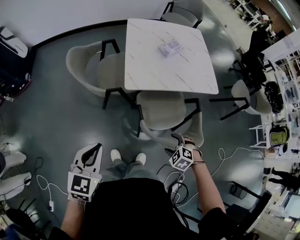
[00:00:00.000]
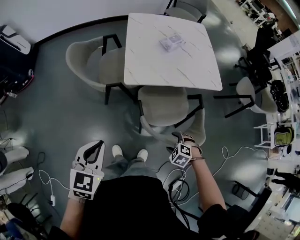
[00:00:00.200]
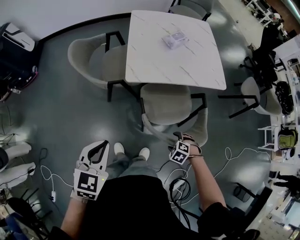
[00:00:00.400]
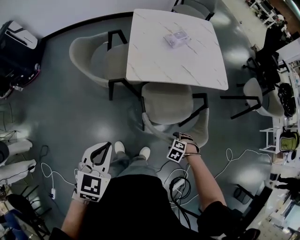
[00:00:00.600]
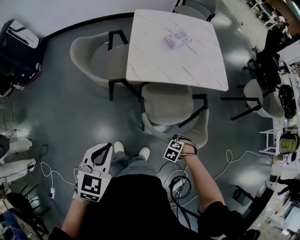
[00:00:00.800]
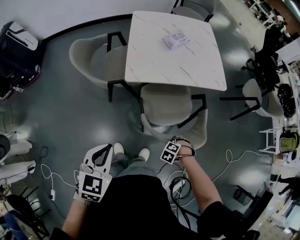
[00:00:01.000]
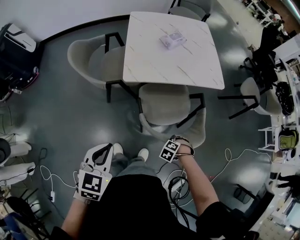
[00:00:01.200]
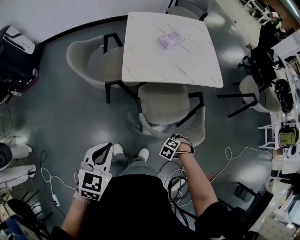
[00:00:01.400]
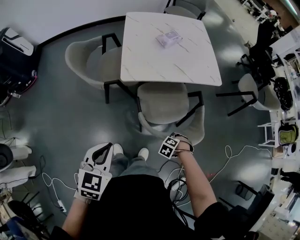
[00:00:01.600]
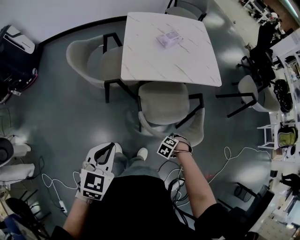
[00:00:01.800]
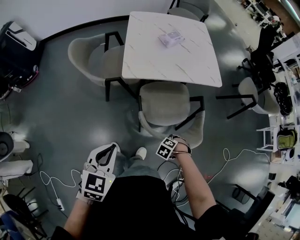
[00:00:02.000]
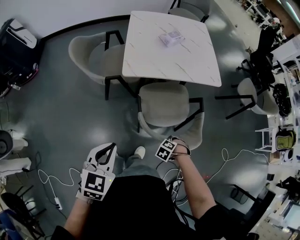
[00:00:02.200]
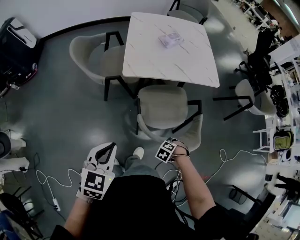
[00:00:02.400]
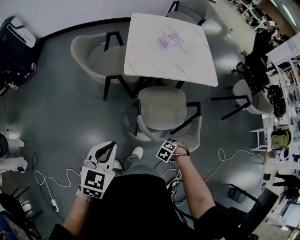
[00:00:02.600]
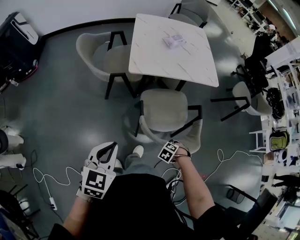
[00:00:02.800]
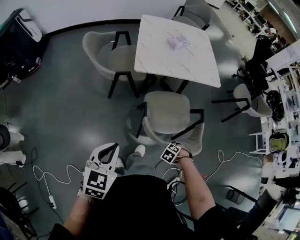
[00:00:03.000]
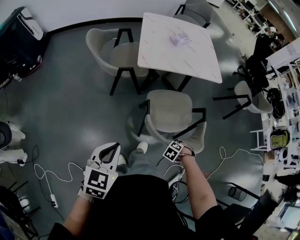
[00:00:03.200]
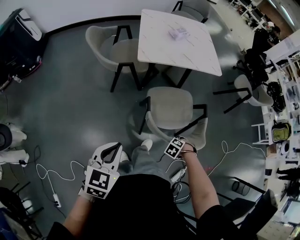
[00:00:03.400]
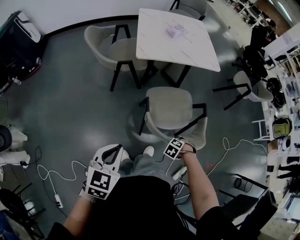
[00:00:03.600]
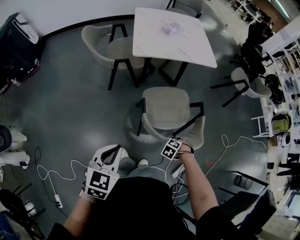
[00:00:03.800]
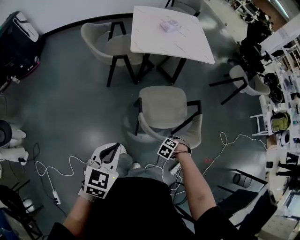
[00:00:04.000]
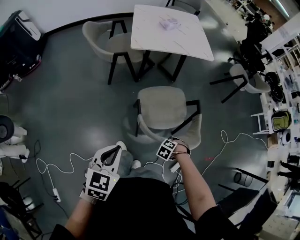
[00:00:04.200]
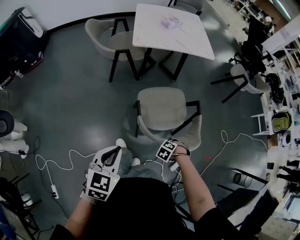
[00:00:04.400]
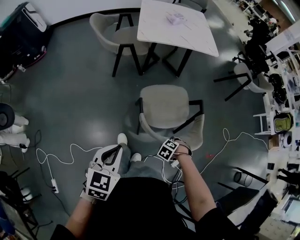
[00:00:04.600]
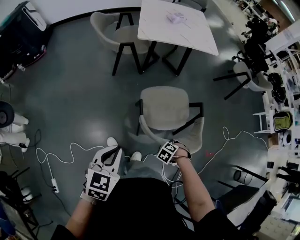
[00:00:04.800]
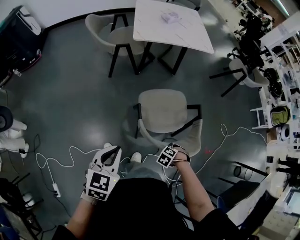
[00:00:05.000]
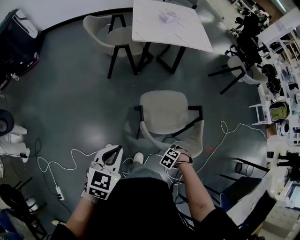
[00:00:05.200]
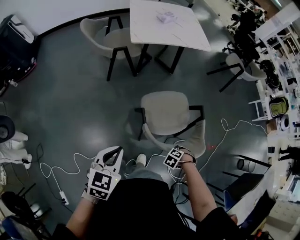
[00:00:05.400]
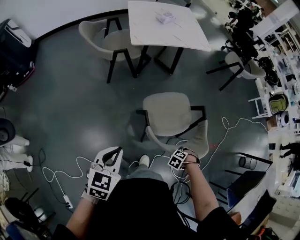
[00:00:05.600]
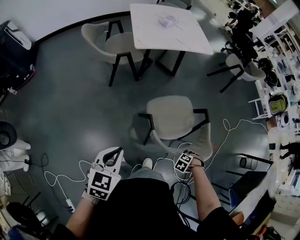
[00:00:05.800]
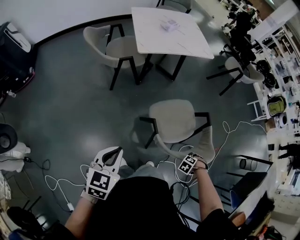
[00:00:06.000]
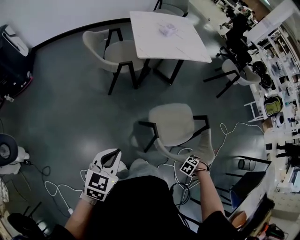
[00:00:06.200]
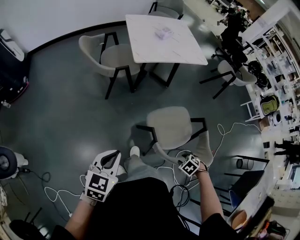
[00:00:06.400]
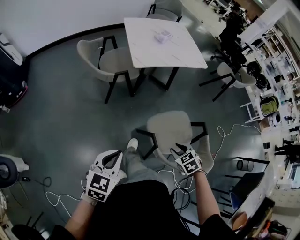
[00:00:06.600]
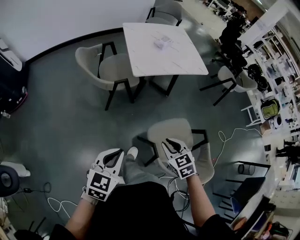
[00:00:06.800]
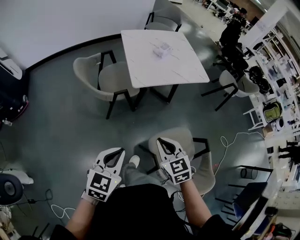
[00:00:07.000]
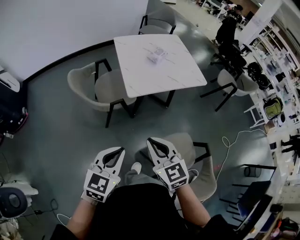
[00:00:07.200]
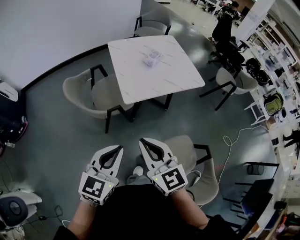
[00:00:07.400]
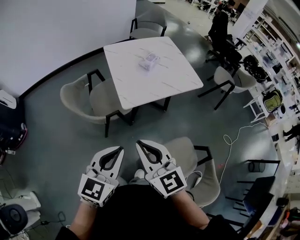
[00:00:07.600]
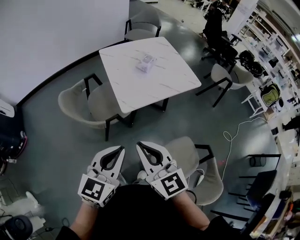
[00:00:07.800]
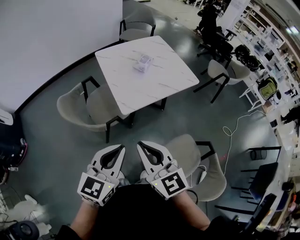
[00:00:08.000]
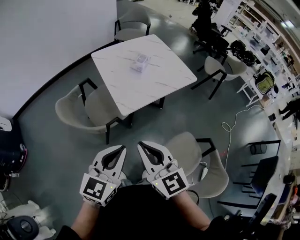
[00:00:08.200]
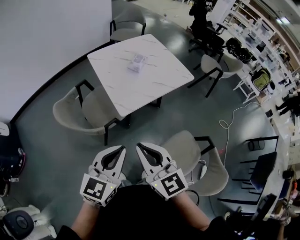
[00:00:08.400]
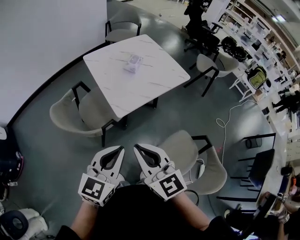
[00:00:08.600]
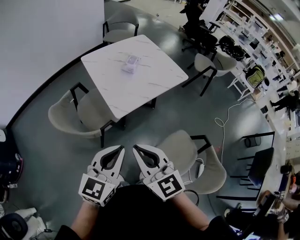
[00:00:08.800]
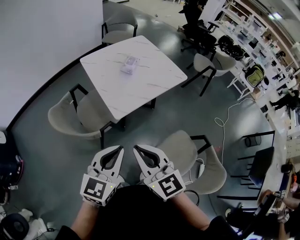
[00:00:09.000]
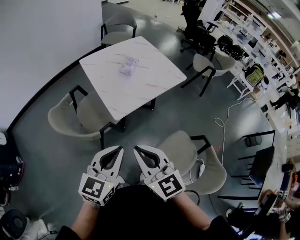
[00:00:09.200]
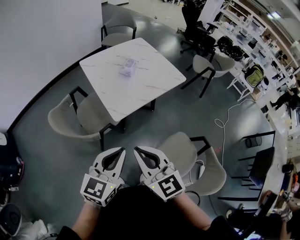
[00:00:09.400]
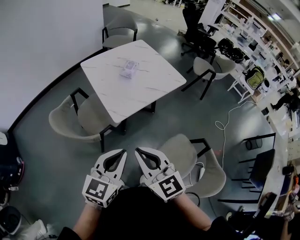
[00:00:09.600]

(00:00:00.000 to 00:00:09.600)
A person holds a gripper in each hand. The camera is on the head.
00:00:00.000 - 00:00:01.600: The right gripper goes approximately 15 cm downward, swivels approximately 20 degrees, and closes up; the left gripper ends up about 10 cm from where it was.
00:00:01.600 - 00:00:03.200: The left gripper shifts by roughly 15 cm. The right gripper shifts by some 15 cm.
00:00:03.200 - 00:00:04.800: The left gripper changes place by about 25 cm. Meanwhile the right gripper shifts by roughly 25 cm.
00:00:04.800 - 00:00:06.400: The left gripper moves roughly 20 cm. The right gripper moves upward, about 10 cm, and turns by roughly 20 degrees.
00:00:06.400 - 00:00:08.000: The left gripper moves about 40 cm, and rotates roughly 20 degrees, while the right gripper shifts by about 60 cm, points its fingers about 80 degrees further upward, and closes up.
00:00:08.000 - 00:00:09.600: The grippers stay close to where they were, moving slightly.

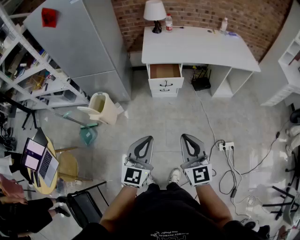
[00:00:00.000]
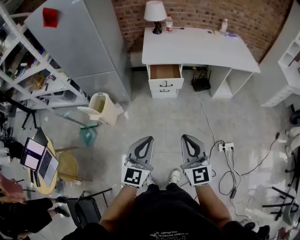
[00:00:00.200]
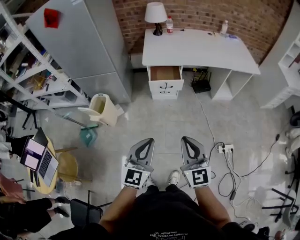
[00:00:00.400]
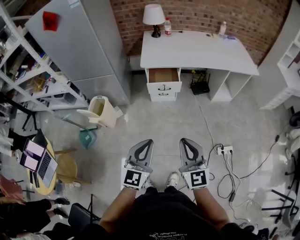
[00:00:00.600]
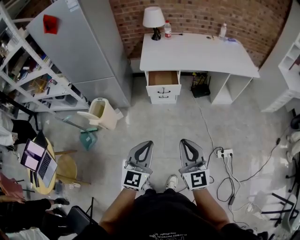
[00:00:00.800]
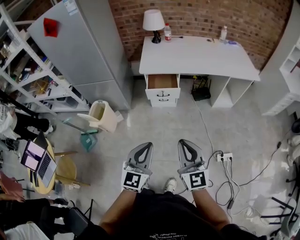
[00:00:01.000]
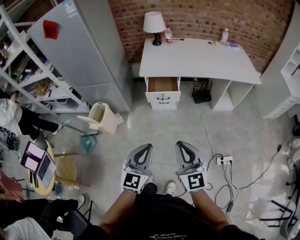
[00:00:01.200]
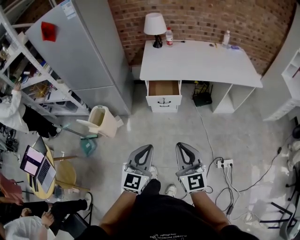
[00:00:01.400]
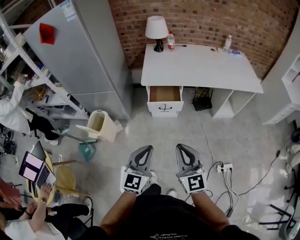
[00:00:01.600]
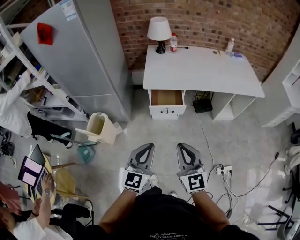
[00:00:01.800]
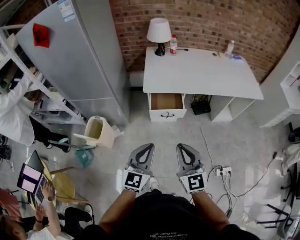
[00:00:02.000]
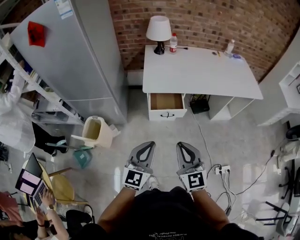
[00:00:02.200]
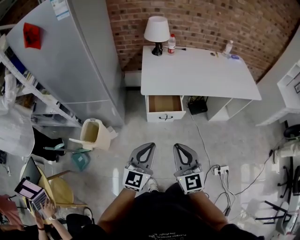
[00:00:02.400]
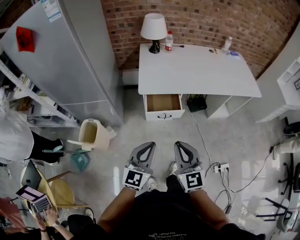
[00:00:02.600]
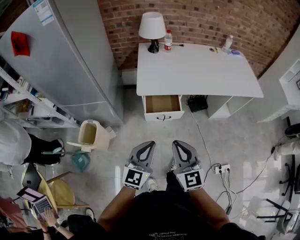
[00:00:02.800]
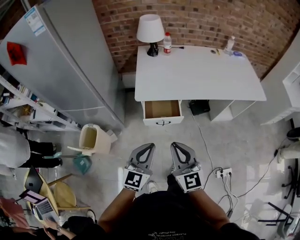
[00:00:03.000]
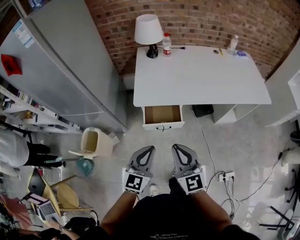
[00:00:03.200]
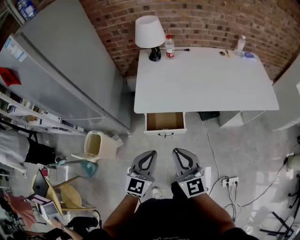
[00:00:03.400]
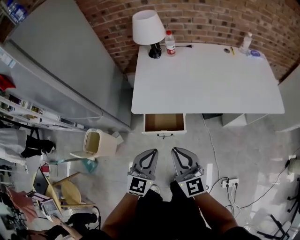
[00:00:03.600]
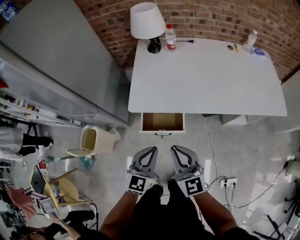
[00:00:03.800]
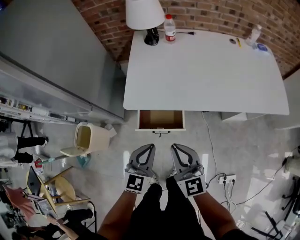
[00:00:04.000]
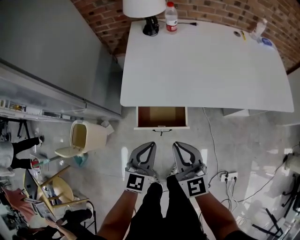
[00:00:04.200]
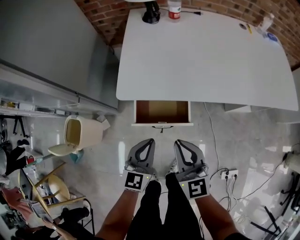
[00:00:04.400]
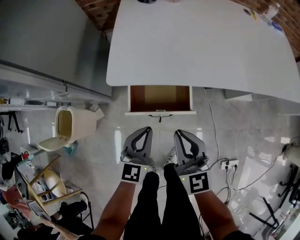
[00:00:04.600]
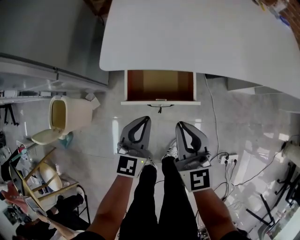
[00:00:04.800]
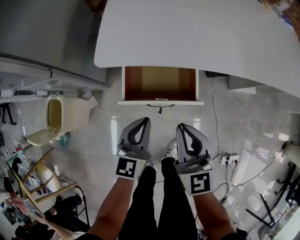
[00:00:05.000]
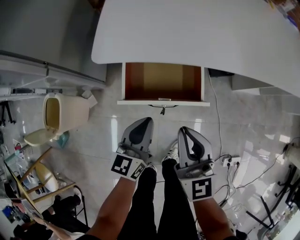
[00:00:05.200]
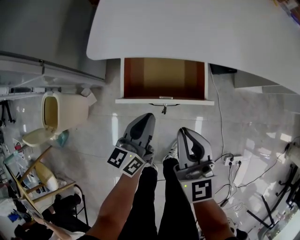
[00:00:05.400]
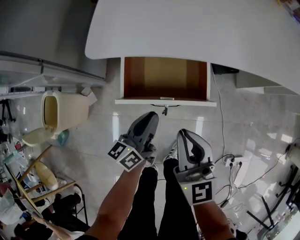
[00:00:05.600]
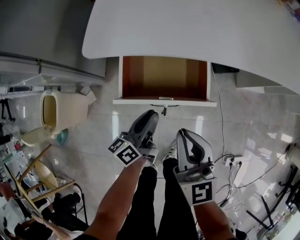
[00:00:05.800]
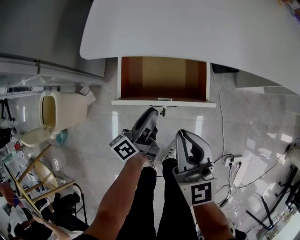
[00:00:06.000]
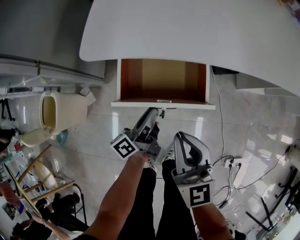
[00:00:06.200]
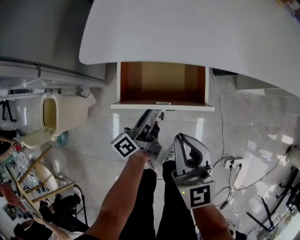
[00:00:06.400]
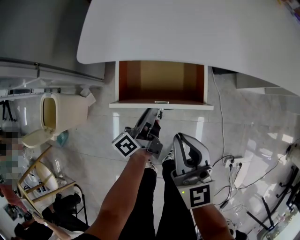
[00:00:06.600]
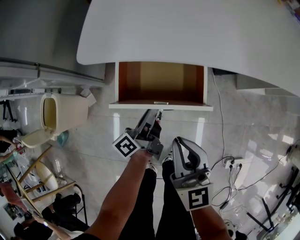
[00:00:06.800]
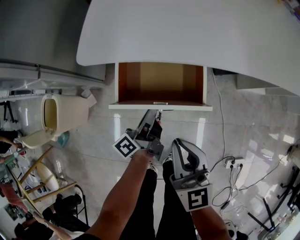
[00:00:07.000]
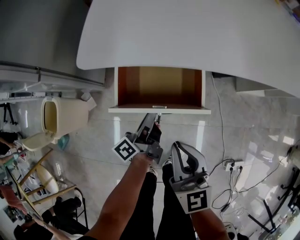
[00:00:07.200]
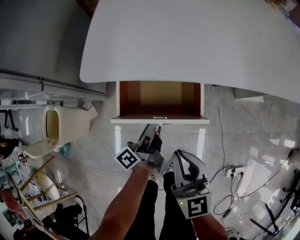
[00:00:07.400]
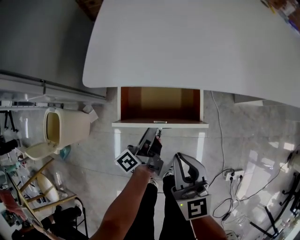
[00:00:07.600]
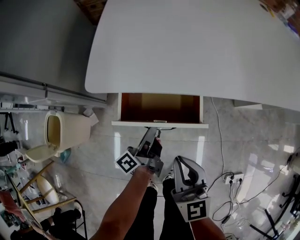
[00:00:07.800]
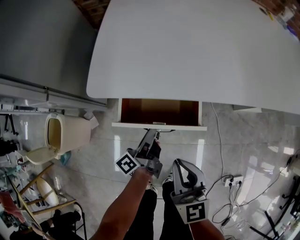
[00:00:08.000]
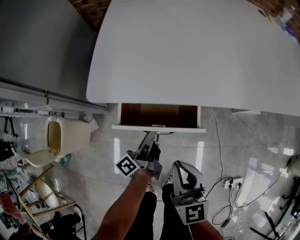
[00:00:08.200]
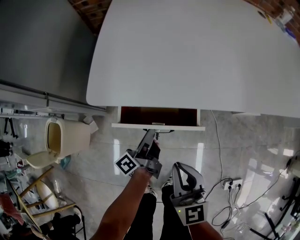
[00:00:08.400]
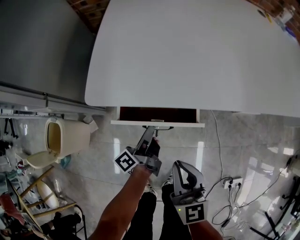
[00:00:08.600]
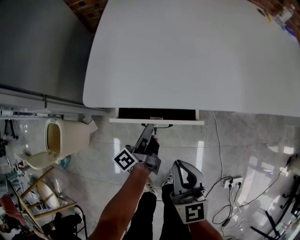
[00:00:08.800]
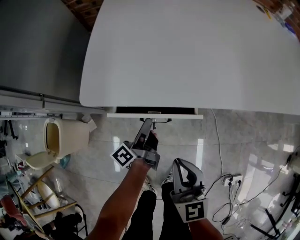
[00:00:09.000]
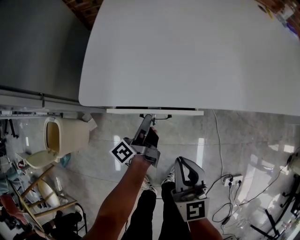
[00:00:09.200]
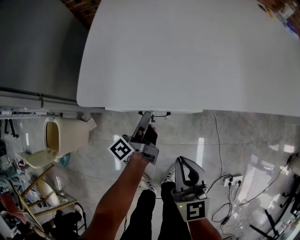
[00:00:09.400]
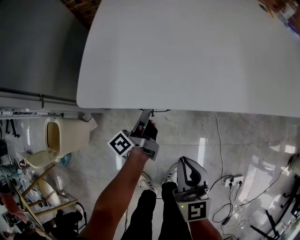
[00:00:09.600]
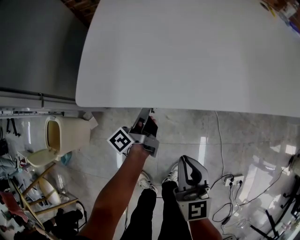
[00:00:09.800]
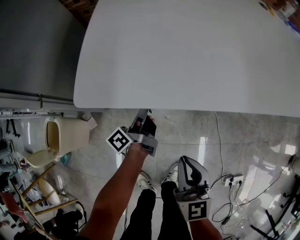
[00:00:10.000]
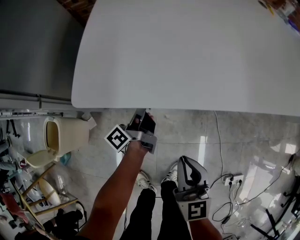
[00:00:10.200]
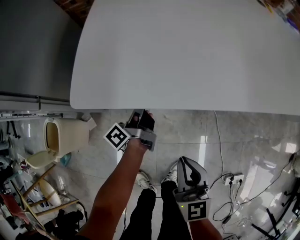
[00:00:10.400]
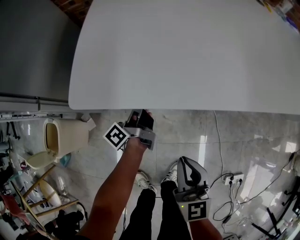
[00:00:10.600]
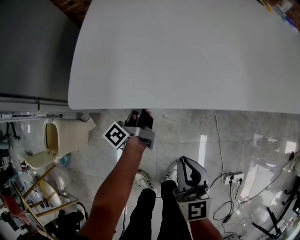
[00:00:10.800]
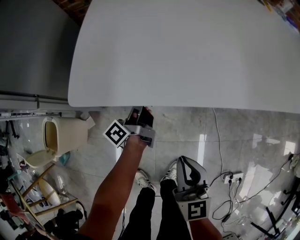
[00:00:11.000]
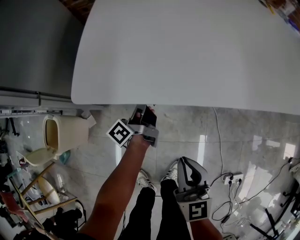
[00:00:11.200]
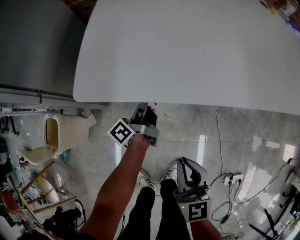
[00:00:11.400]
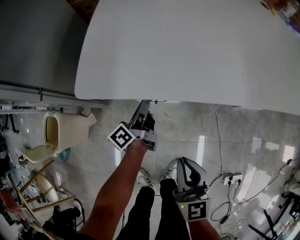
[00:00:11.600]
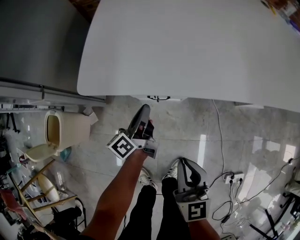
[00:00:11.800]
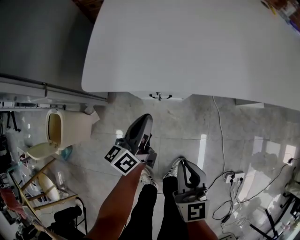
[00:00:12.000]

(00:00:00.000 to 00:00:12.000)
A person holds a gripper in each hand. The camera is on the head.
00:00:00.000 - 00:00:01.600: The two grippers go about 10 cm forward.
00:00:01.600 - 00:00:03.000: The grippers both shift forward by about 20 cm.
00:00:03.000 - 00:00:04.400: The left gripper heads downward and forward, covering about 25 cm. Meanwhile the right gripper shifts roughly 25 cm forward and downward.
00:00:04.400 - 00:00:06.000: The right gripper heads downward, covering some 15 cm. The left gripper heads downward, covering about 25 cm, rolls counterclockwise, seen from behind, by roughly 60 degrees, and opens.
00:00:06.000 - 00:00:07.600: The left gripper closes up.
00:00:07.600 - 00:00:09.000: The left gripper moves forward, about 5 cm.
00:00:09.000 - 00:00:10.400: The left gripper is displaced forward by roughly 10 cm.
00:00:10.400 - 00:00:12.000: The right gripper shifts by roughly 5 cm. The left gripper shifts some 10 cm backward and upward, and changes its angle by about 40 degrees.

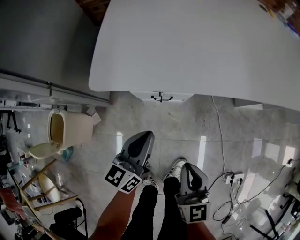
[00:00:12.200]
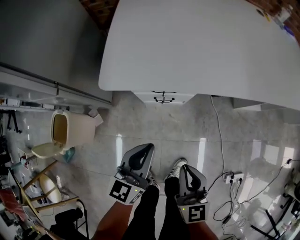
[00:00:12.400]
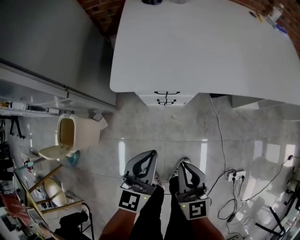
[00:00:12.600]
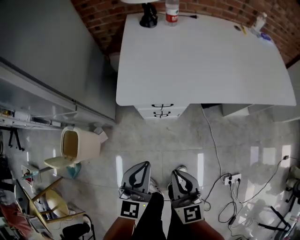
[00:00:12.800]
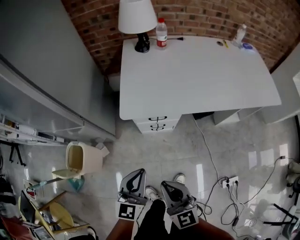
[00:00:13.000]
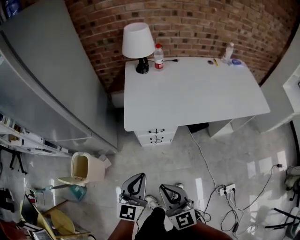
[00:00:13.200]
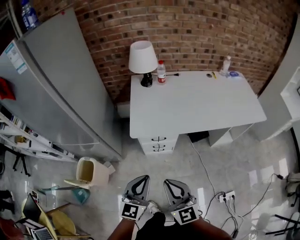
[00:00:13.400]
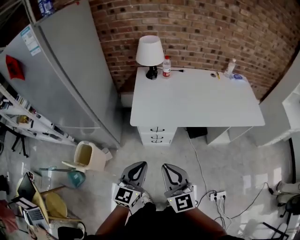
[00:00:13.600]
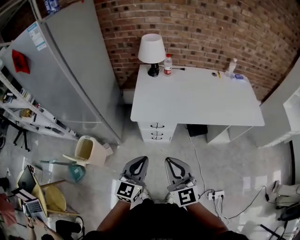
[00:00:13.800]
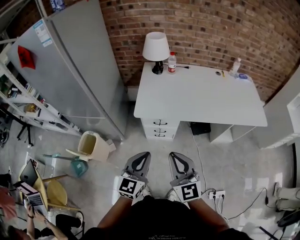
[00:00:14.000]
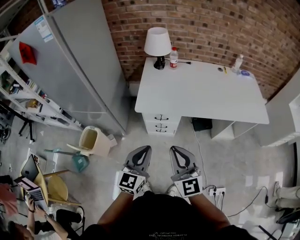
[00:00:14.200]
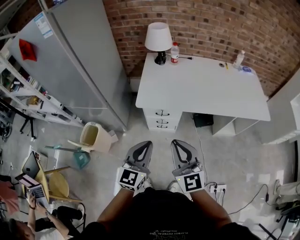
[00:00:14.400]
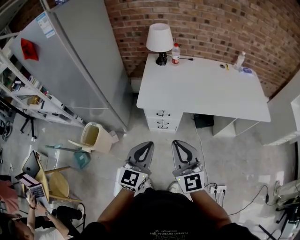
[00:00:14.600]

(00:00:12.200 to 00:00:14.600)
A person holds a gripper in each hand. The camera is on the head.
00:00:12.200 - 00:00:13.400: The left gripper is displaced upward and backward by some 35 cm, and changes its angle by roughly 30 degrees. The right gripper moves upward, some 30 cm, and swivels some 20 degrees.
00:00:13.400 - 00:00:14.600: The left gripper shifts some 5 cm upward, while the right gripper goes approximately 10 cm upward and to the right.
